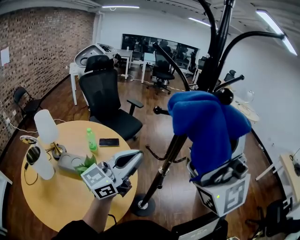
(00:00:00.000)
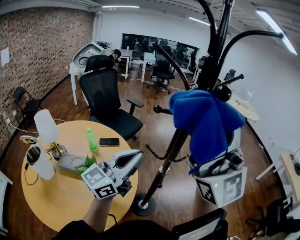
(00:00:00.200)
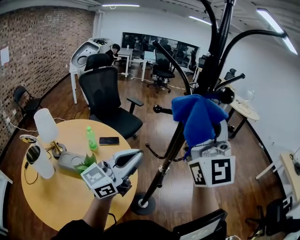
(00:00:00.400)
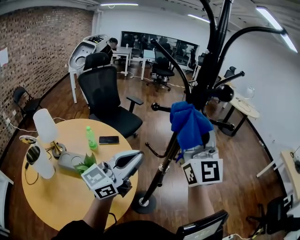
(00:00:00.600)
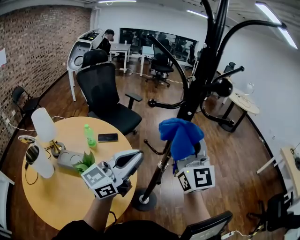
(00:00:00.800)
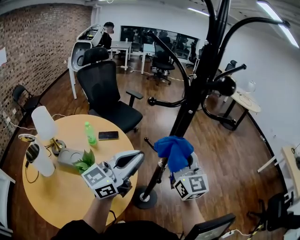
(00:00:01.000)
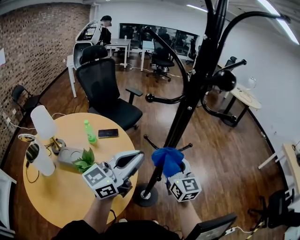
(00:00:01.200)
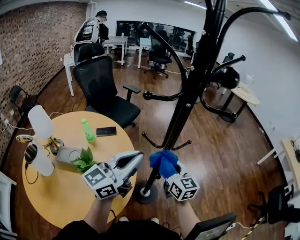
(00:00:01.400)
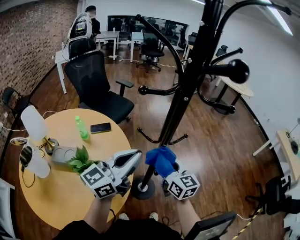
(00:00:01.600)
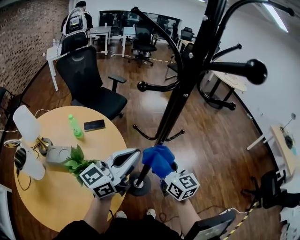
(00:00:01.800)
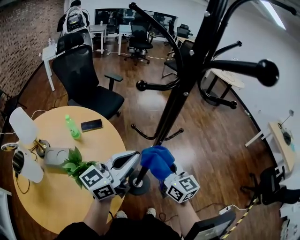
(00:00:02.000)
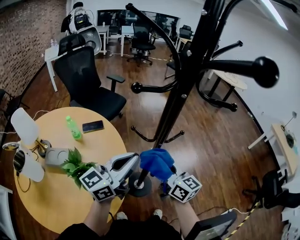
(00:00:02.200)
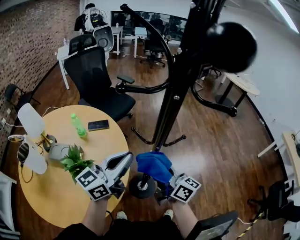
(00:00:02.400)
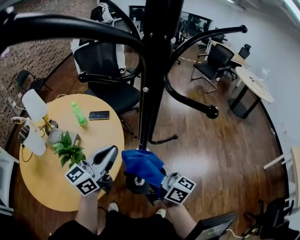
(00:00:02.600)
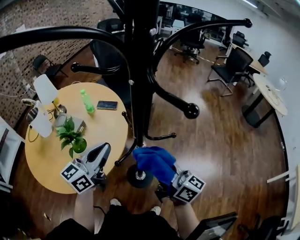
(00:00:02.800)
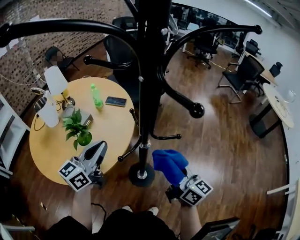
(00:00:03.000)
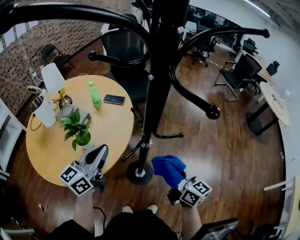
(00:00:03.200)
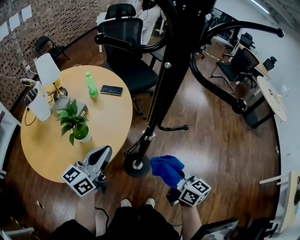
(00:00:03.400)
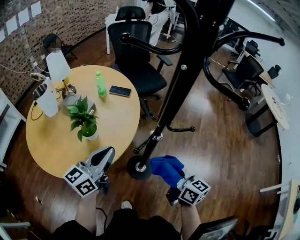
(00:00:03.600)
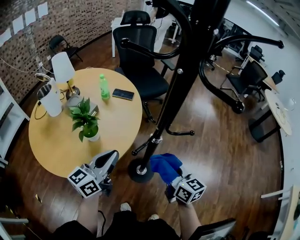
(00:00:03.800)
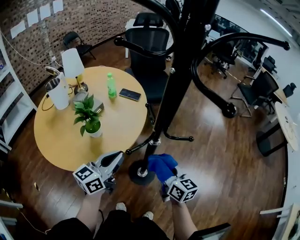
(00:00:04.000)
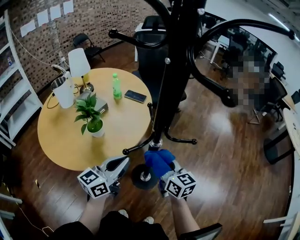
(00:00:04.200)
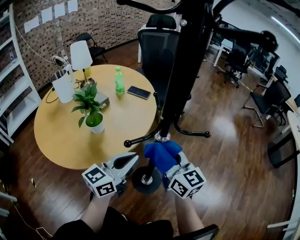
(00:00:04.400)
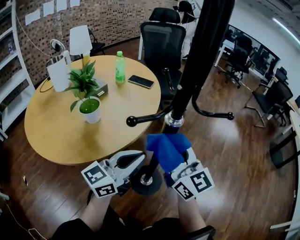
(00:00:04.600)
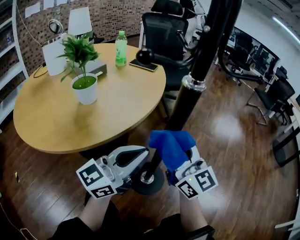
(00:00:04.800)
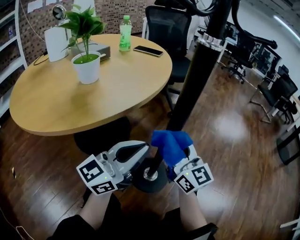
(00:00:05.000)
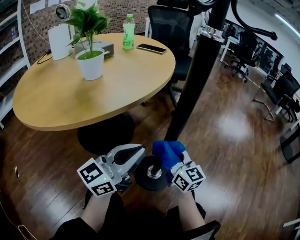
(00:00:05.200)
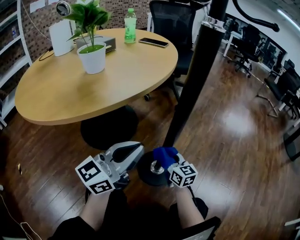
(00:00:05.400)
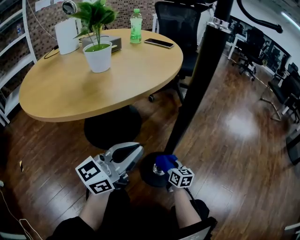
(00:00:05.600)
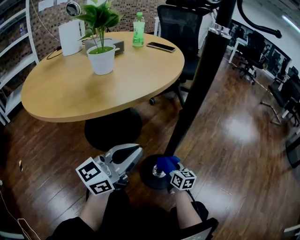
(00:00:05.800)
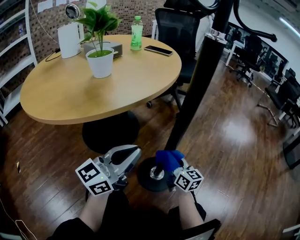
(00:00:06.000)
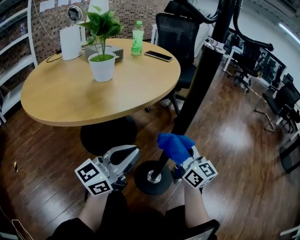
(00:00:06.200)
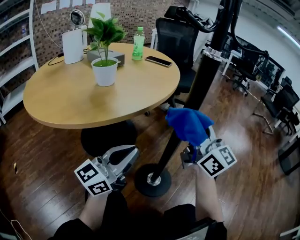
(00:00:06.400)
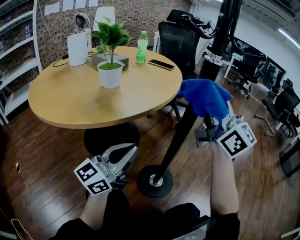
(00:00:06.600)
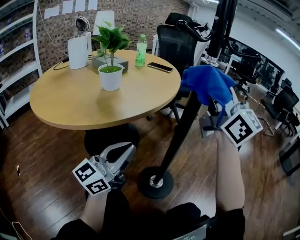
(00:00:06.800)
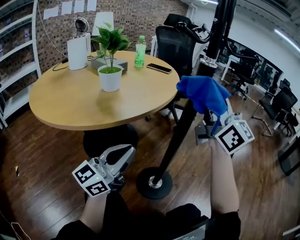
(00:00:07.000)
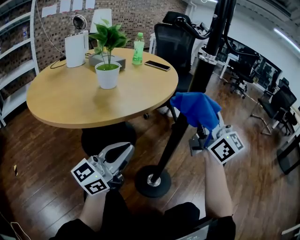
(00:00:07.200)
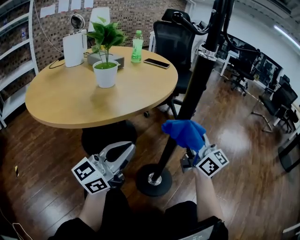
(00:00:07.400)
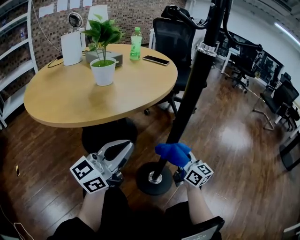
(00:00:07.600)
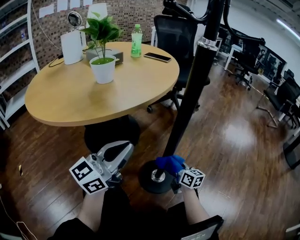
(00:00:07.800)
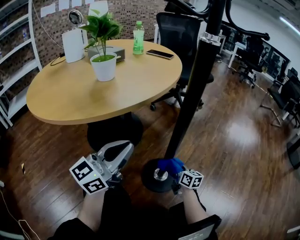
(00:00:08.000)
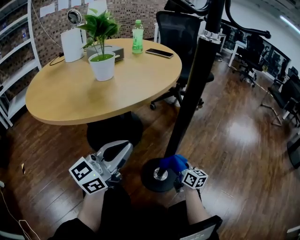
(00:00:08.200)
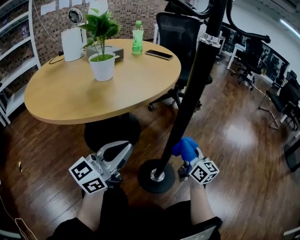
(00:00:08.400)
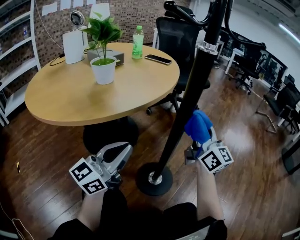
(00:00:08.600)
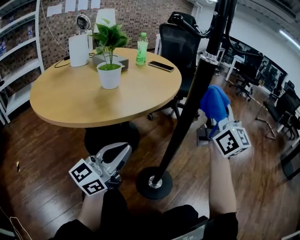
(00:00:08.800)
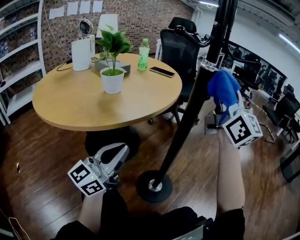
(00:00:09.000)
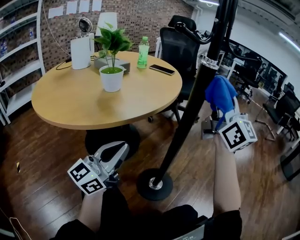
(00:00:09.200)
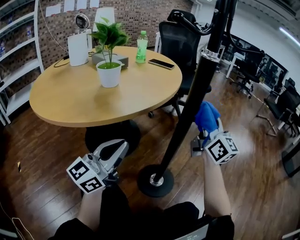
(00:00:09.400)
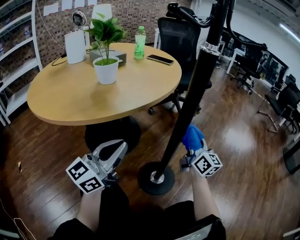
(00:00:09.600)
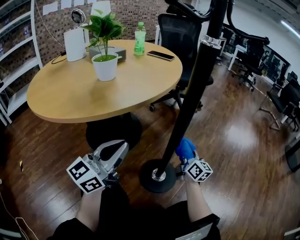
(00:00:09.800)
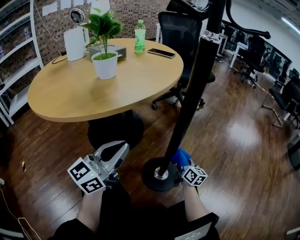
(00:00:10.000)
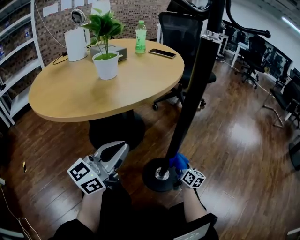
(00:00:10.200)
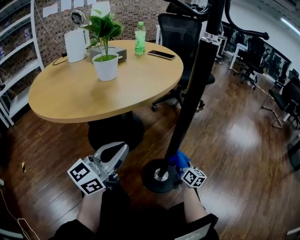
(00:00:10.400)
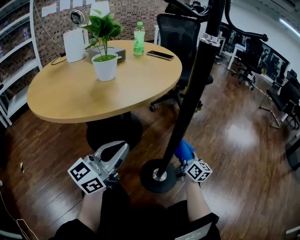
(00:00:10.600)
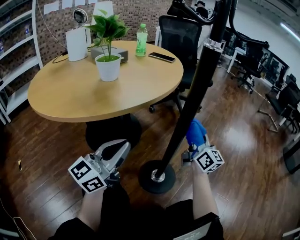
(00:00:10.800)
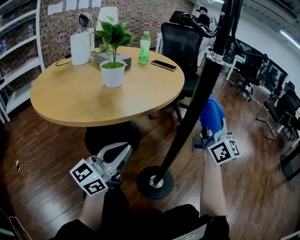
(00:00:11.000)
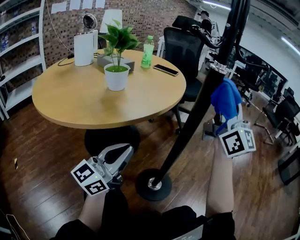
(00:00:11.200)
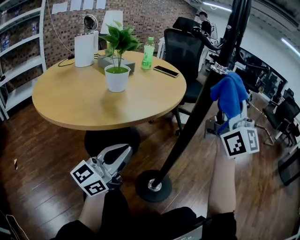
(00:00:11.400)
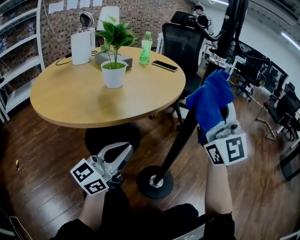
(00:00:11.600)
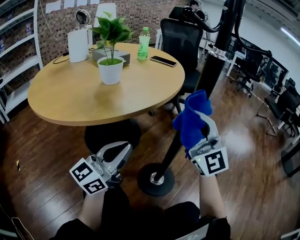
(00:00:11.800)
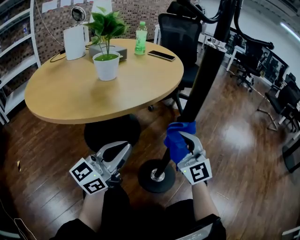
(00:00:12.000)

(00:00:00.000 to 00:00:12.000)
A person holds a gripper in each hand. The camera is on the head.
00:00:00.000 - 00:00:01.600: The left gripper moves downward, approximately 5 cm, while the right gripper is displaced downward by approximately 40 cm, and angles its fingers downward, by approximately 50 degrees.
00:00:01.600 - 00:00:03.000: The left gripper is displaced downward by about 10 cm, and rotates approximately 40 degrees, while the right gripper changes place by approximately 15 cm, and turns by about 40 degrees.
00:00:03.000 - 00:00:04.400: The right gripper heads downward, to the left and forward, covering approximately 15 cm, and swivels roughly 20 degrees. The left gripper heads downward and to the right, covering some 15 cm.
00:00:04.400 - 00:00:06.000: The left gripper heads downward, covering about 25 cm, while the right gripper travels downward by some 50 cm.
00:00:06.000 - 00:00:07.600: The right gripper travels upward and back again, about 50 cm each way; the left gripper ends up some 5 cm from where it was.
00:00:07.600 - 00:00:09.000: The right gripper is displaced upward by roughly 40 cm, and rotates some 40 degrees.
00:00:09.000 - 00:00:10.400: The right gripper moves downward, about 60 cm, and tilts its fingers some 40 degrees downward; the left gripper travels downward by approximately 5 cm.
00:00:10.400 - 00:00:12.000: The right gripper moves upward, some 30 cm, and rotates around the line of its fingers by about 60 degrees, counterclockwise from behind.

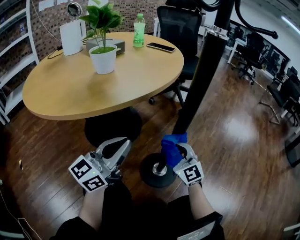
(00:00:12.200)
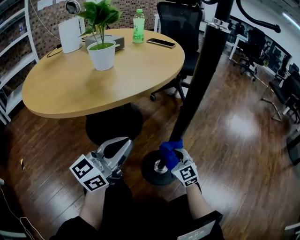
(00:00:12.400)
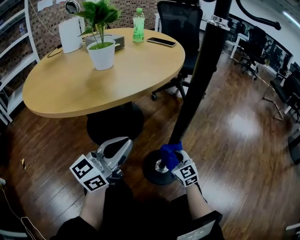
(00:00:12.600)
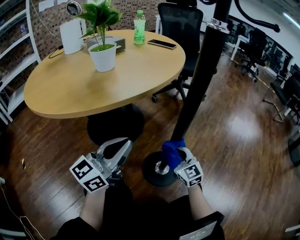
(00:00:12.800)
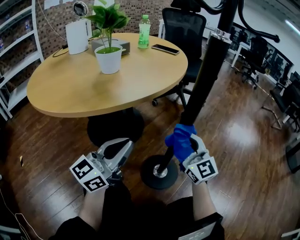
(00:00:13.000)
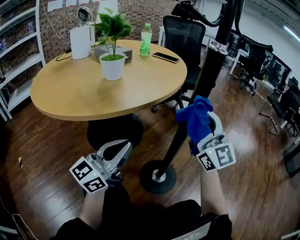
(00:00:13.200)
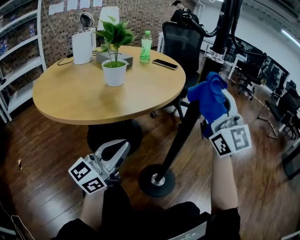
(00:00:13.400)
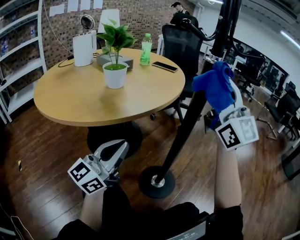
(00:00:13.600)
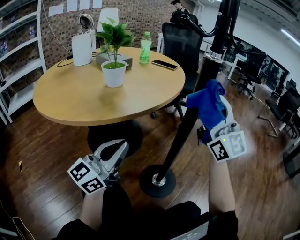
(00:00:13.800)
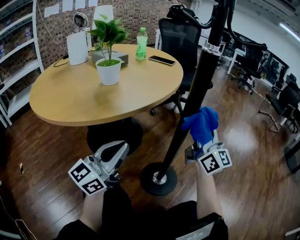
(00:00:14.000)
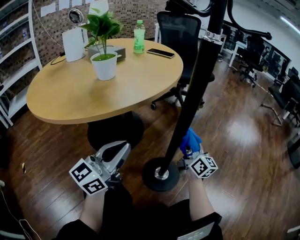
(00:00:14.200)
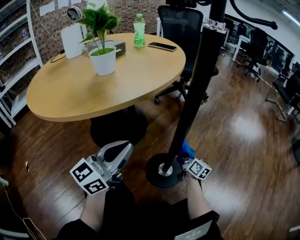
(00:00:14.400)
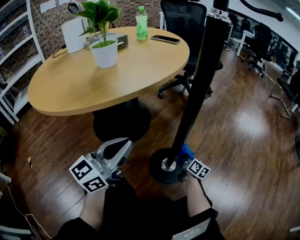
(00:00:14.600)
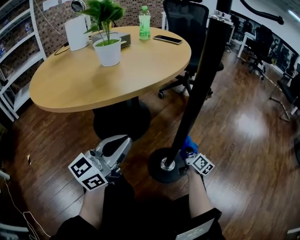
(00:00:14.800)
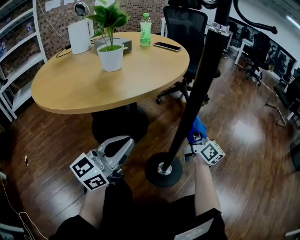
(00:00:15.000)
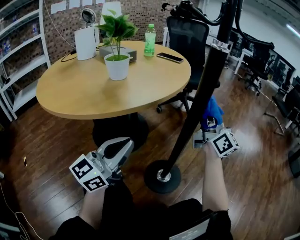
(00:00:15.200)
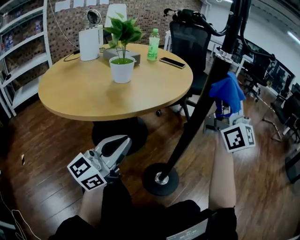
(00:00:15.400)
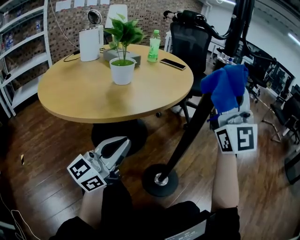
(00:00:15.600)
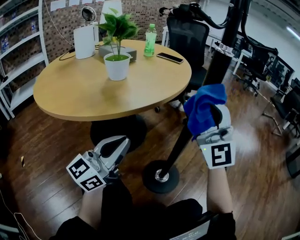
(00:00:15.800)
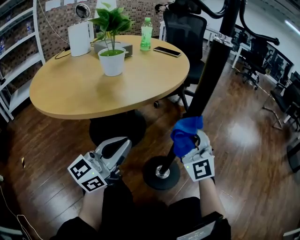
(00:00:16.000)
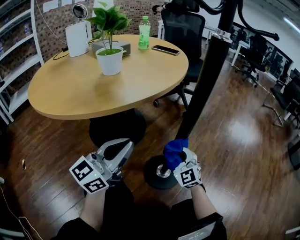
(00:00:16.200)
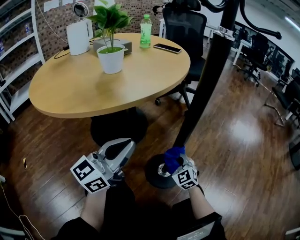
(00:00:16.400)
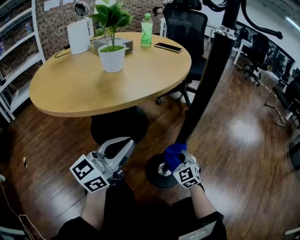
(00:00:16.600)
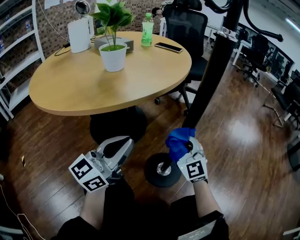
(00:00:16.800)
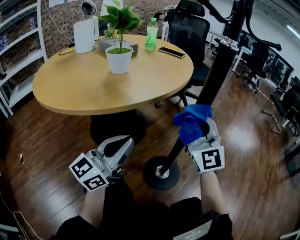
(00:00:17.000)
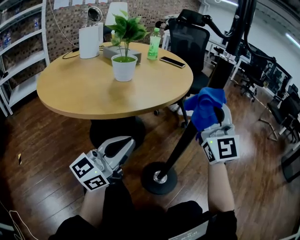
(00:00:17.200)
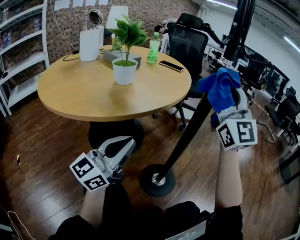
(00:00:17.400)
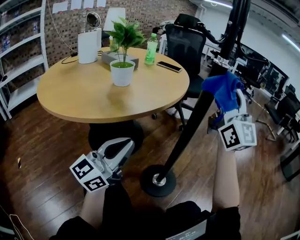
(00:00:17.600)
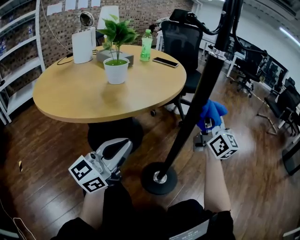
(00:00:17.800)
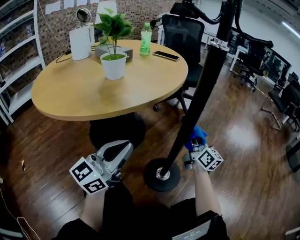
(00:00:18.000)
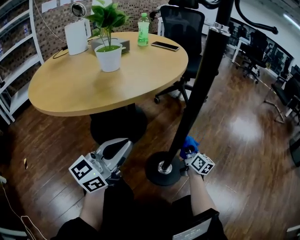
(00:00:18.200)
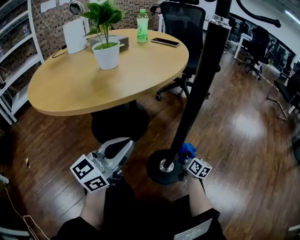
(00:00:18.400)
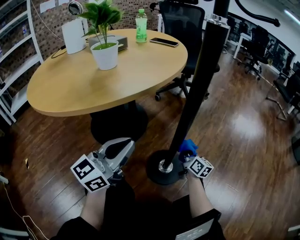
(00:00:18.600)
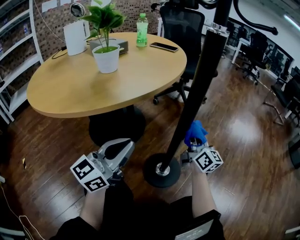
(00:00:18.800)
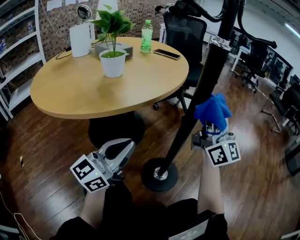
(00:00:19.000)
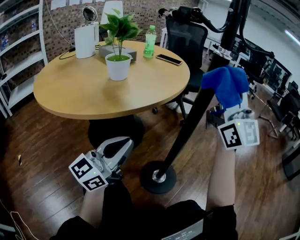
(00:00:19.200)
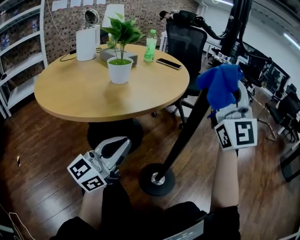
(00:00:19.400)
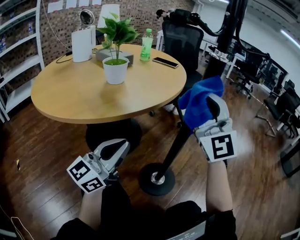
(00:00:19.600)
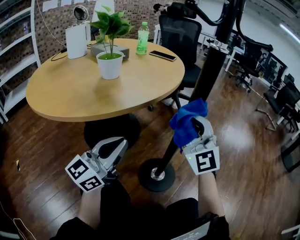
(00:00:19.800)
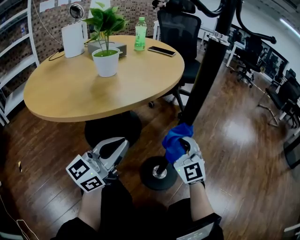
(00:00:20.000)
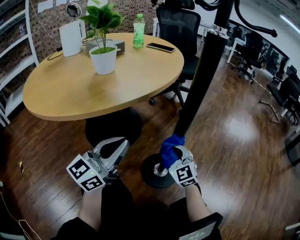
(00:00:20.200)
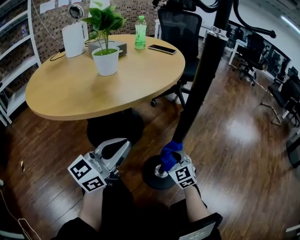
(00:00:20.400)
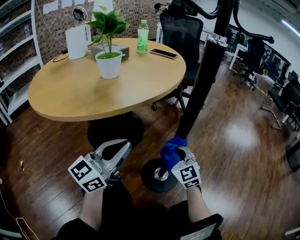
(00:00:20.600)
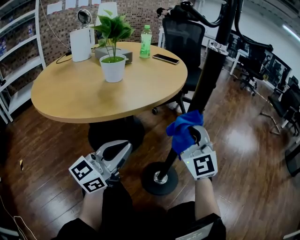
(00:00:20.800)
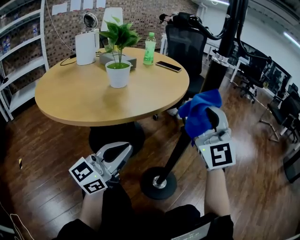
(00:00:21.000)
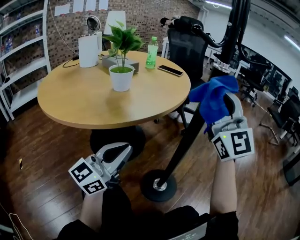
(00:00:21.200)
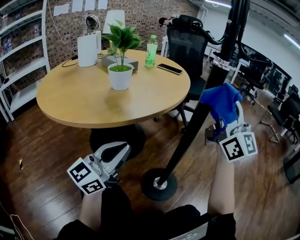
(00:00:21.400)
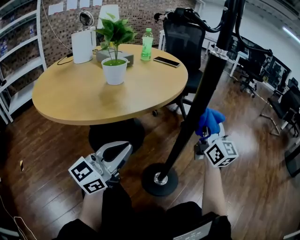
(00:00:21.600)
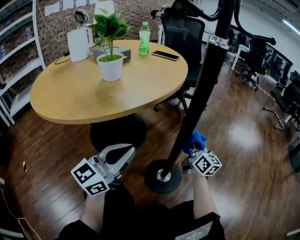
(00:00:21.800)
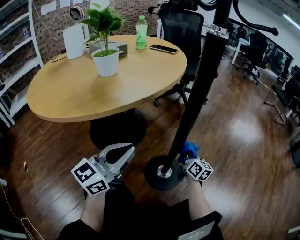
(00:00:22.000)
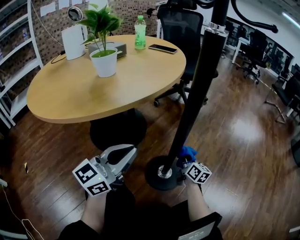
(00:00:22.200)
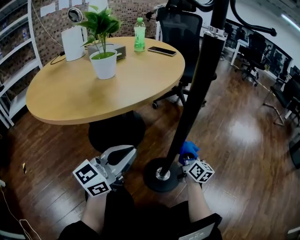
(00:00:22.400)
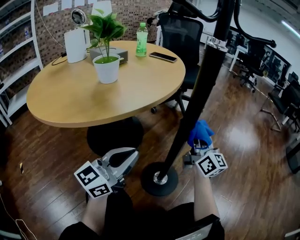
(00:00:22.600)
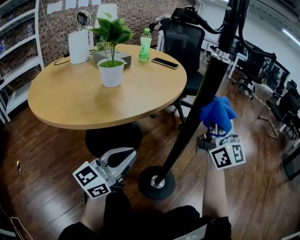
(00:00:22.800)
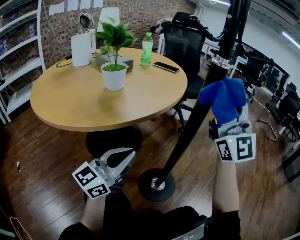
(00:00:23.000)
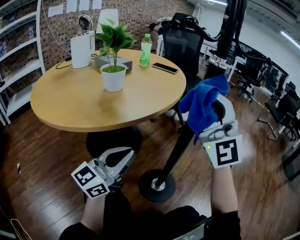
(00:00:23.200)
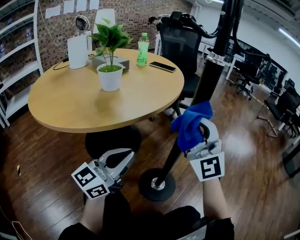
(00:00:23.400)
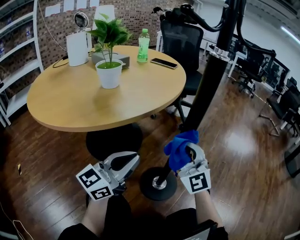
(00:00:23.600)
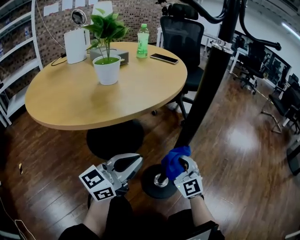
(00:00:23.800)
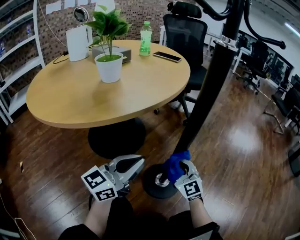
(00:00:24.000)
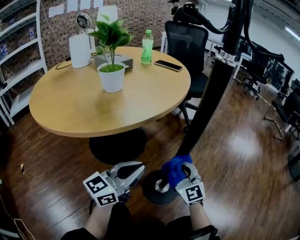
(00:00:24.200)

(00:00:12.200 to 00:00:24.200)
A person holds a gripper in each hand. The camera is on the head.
00:00:12.200 - 00:00:13.800: The left gripper ends up roughly 5 cm from where it was. The right gripper goes up and down, roughly 50 cm each way, reversing 2 times, and angles its fingers upward, by some 30 degrees.
00:00:13.800 - 00:00:15.200: The right gripper moves forward, some 10 cm, reaches some 60 cm downward, then returns, and turns by roughly 40 degrees.
00:00:15.200 - 00:00:16.600: The right gripper moves downward, approximately 30 cm, and tips its fingers downward by about 50 degrees.
00:00:16.600 - 00:00:18.200: The right gripper moves to the right and forward, some 10 cm, moves roughly 50 cm upward and comes back, and rolls clockwise, seen from behind, by some 70 degrees.
00:00:18.200 - 00:00:19.800: The right gripper goes up and down, approximately 60 cm each way, reversing 2 times, and twists approximately 80 degrees counterclockwise, seen from behind.
00:00:19.800 - 00:00:21.200: The right gripper heads upward, covering approximately 15 cm.
00:00:21.200 - 00:00:22.600: The right gripper heads downward, covering some 25 cm, and rolls clockwise, seen from behind, by some 50 degrees; the left gripper moves downward, roughly 5 cm.
00:00:22.600 - 00:00:24.200: The right gripper goes up and down, about 40 cm each way, reversing 2 times, and changes its angle by roughly 50 degrees.
